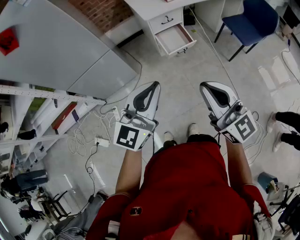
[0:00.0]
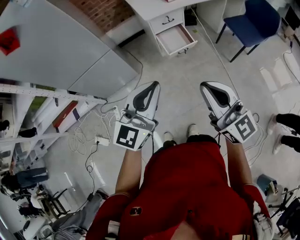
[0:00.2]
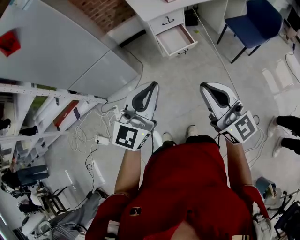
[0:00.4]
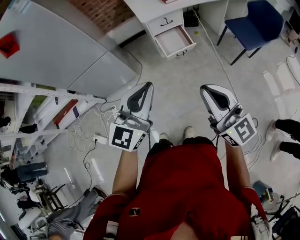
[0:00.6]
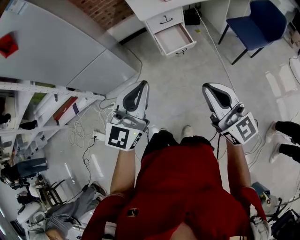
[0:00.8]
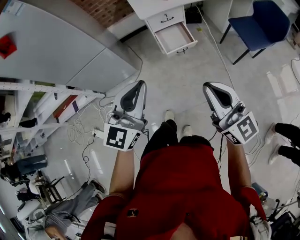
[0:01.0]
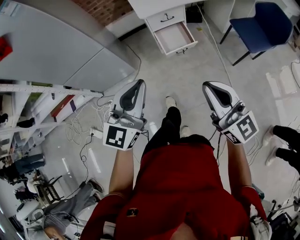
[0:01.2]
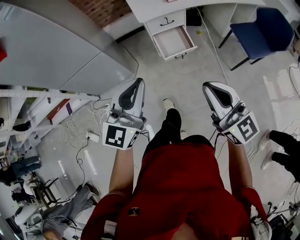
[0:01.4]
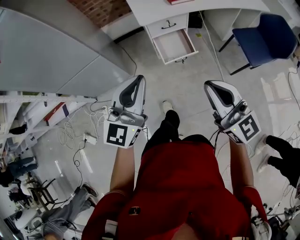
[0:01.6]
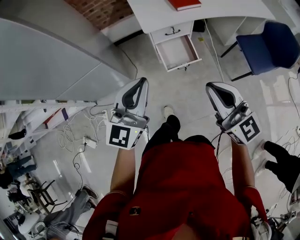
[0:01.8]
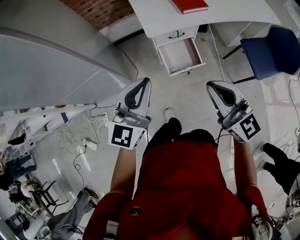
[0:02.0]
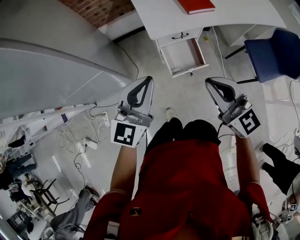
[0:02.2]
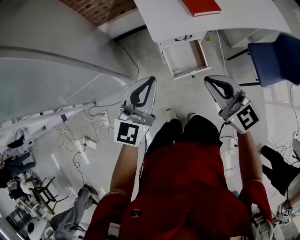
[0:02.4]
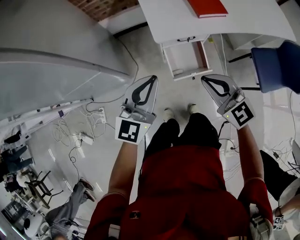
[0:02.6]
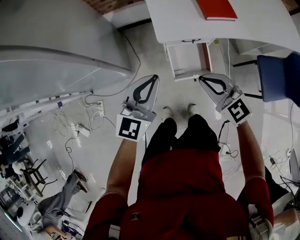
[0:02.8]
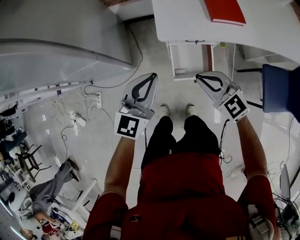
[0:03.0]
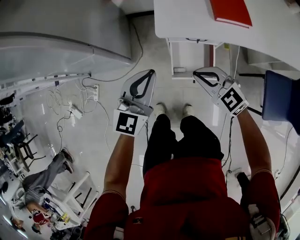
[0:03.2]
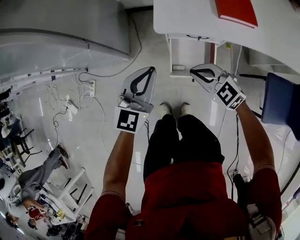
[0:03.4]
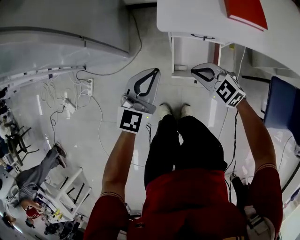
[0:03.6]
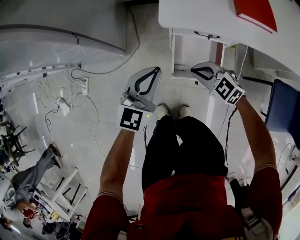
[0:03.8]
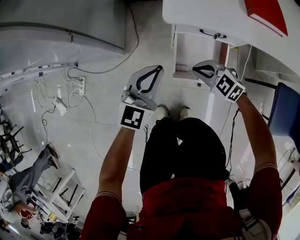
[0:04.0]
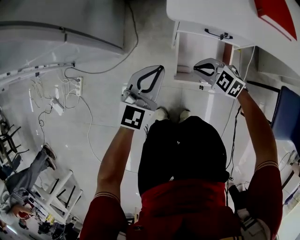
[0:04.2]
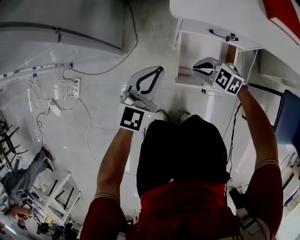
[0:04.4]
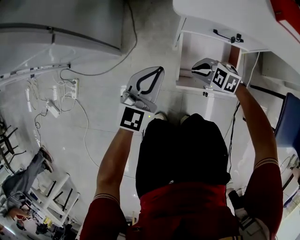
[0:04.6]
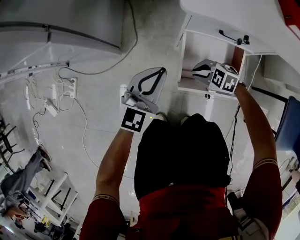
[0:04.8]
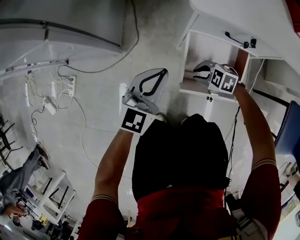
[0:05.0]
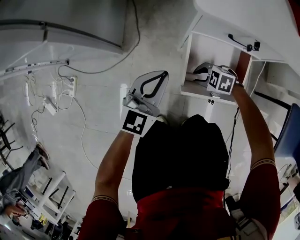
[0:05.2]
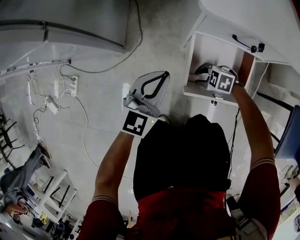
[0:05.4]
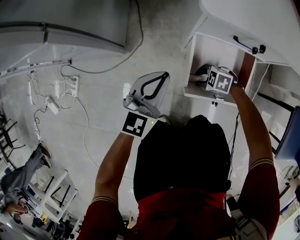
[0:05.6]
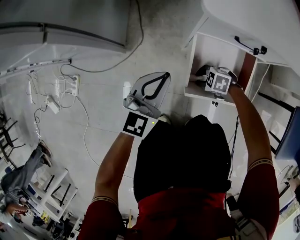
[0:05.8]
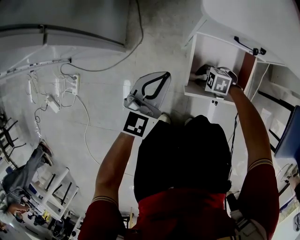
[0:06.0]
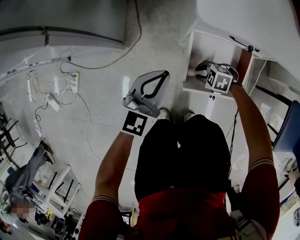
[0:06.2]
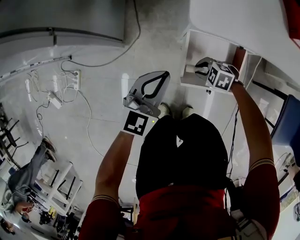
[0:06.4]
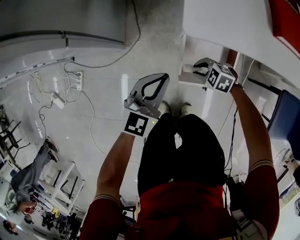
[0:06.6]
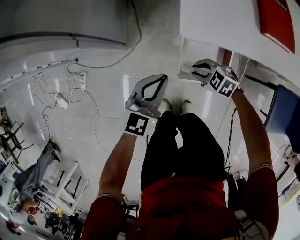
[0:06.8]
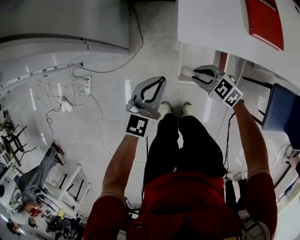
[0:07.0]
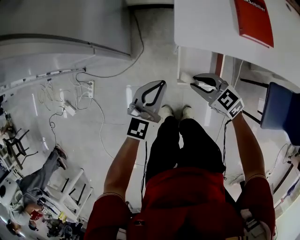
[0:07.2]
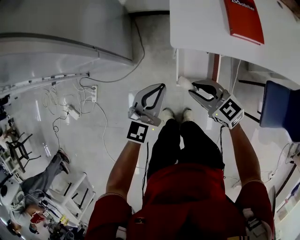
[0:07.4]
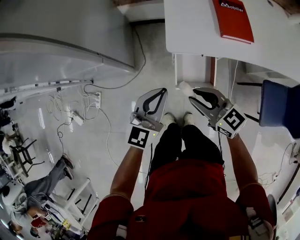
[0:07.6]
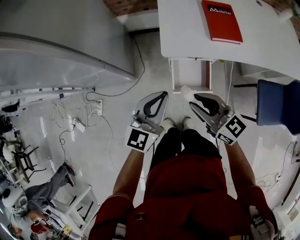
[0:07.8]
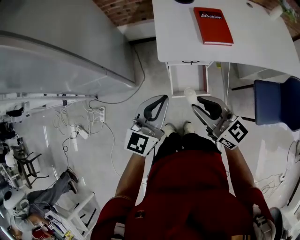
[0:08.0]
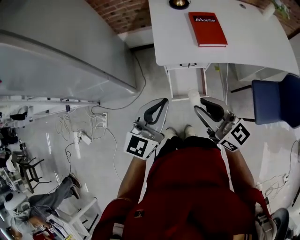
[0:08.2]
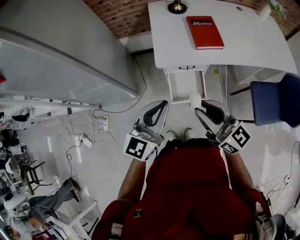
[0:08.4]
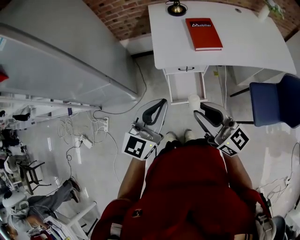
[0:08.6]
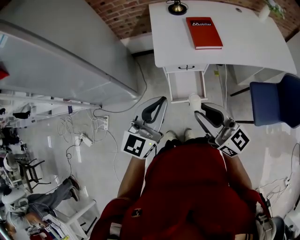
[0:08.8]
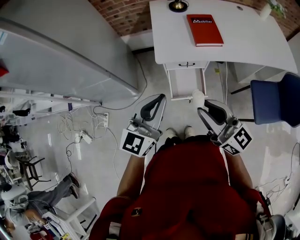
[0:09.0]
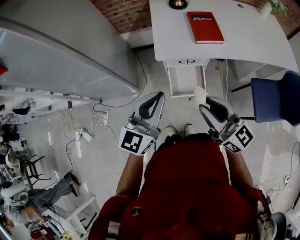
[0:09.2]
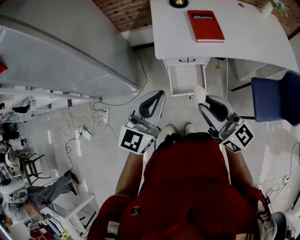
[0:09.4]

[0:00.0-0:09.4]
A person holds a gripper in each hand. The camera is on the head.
0:00.0 to 0:01.6: The right gripper shifts roughly 20 cm forward and to the right, while the left gripper travels forward by about 20 cm.
0:01.6 to 0:03.2: The right gripper ends up roughly 40 cm from where it was, and angles its fingers downward, by roughly 30 degrees; the left gripper shifts by about 35 cm, and changes its angle by roughly 20 degrees.
0:03.2 to 0:04.8: The two grippers go approximately 35 cm downward. The right gripper rotates approximately 40 degrees.
0:04.8 to 0:06.2: The right gripper is displaced downward by approximately 5 cm.
0:06.2 to 0:07.8: The right gripper moves upward, some 60 cm, and points its fingers about 50 degrees further upward; the left gripper is displaced upward by about 40 cm.
0:07.8 to 0:09.4: The right gripper goes approximately 15 cm upward, backward and to the right. Meanwhile the left gripper shifts roughly 15 cm upward and backward.

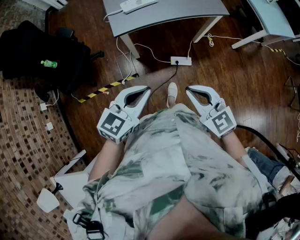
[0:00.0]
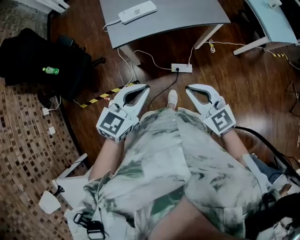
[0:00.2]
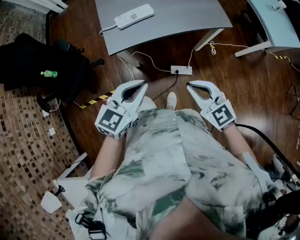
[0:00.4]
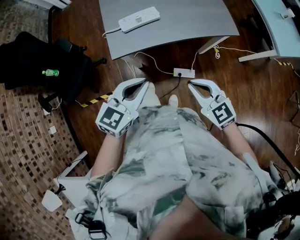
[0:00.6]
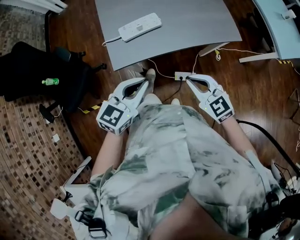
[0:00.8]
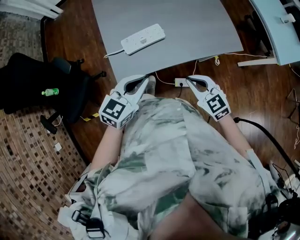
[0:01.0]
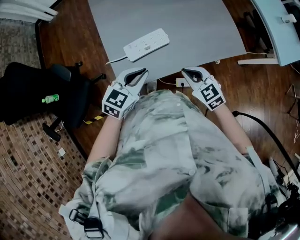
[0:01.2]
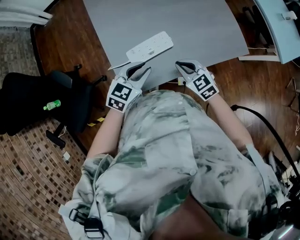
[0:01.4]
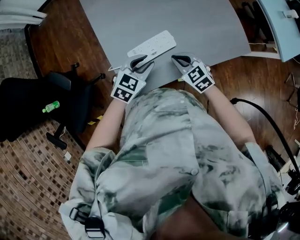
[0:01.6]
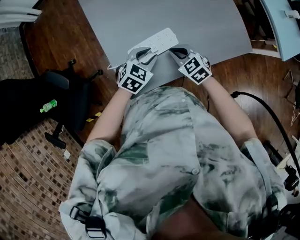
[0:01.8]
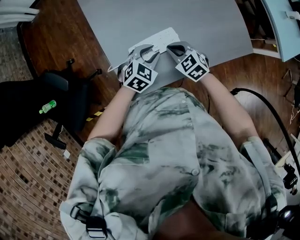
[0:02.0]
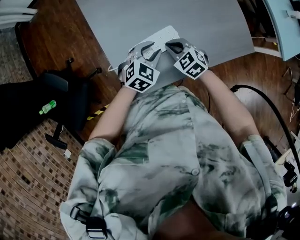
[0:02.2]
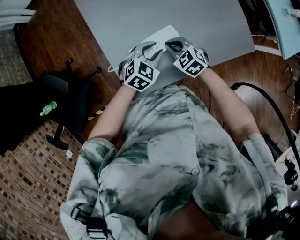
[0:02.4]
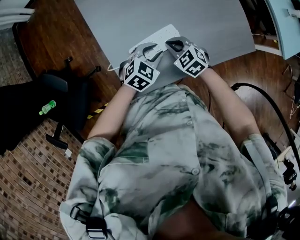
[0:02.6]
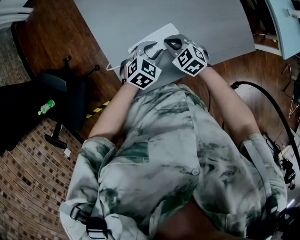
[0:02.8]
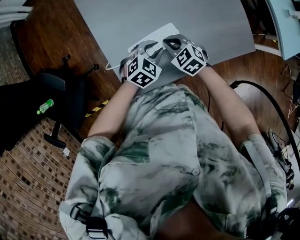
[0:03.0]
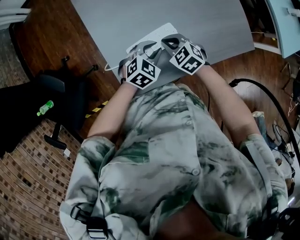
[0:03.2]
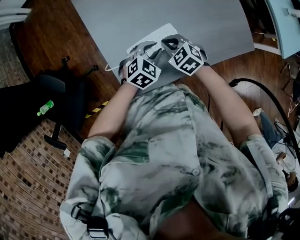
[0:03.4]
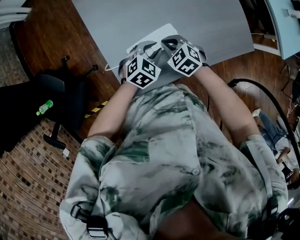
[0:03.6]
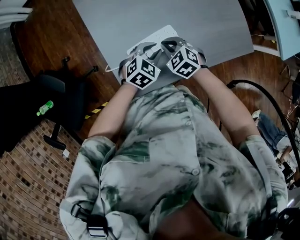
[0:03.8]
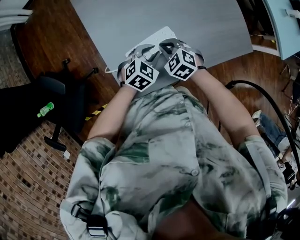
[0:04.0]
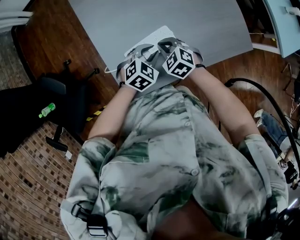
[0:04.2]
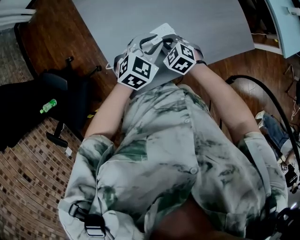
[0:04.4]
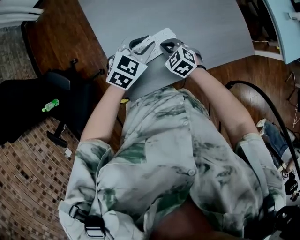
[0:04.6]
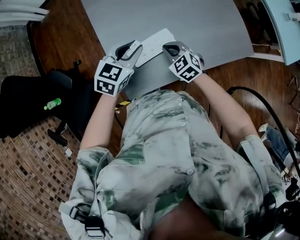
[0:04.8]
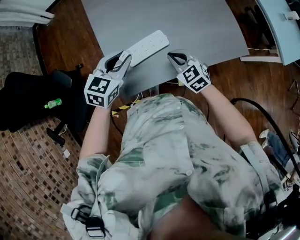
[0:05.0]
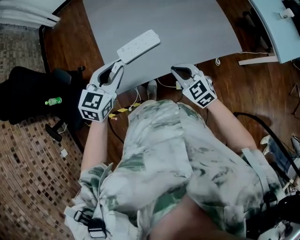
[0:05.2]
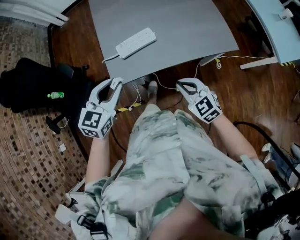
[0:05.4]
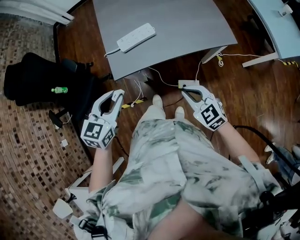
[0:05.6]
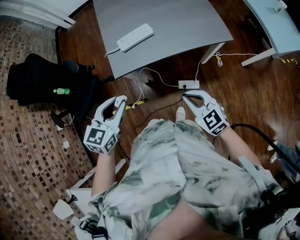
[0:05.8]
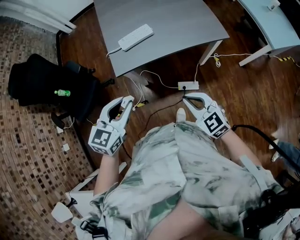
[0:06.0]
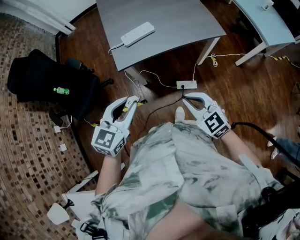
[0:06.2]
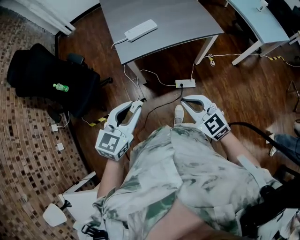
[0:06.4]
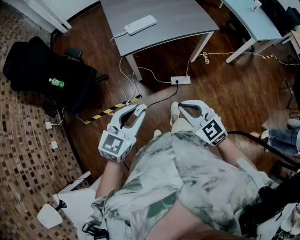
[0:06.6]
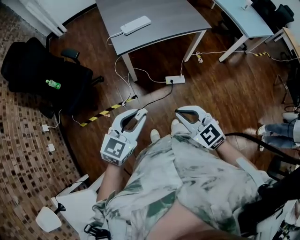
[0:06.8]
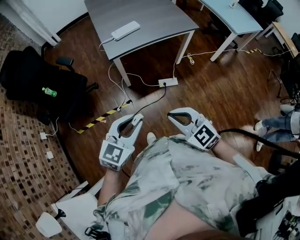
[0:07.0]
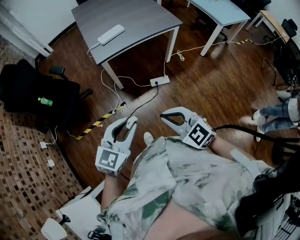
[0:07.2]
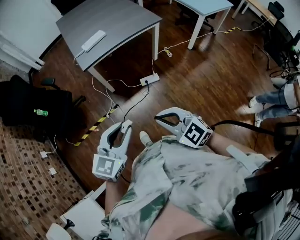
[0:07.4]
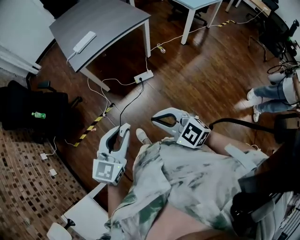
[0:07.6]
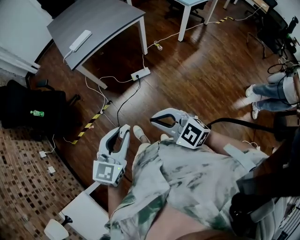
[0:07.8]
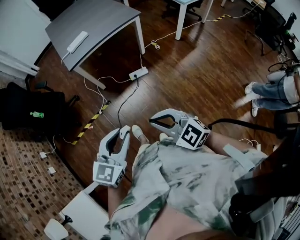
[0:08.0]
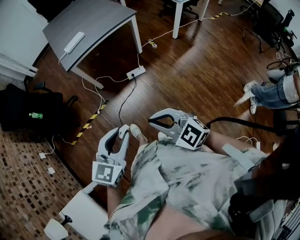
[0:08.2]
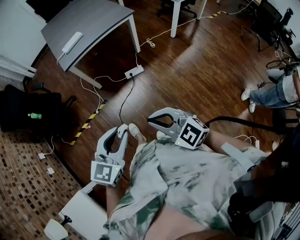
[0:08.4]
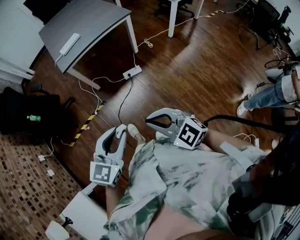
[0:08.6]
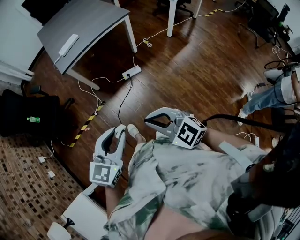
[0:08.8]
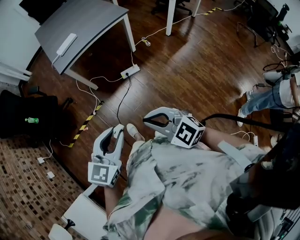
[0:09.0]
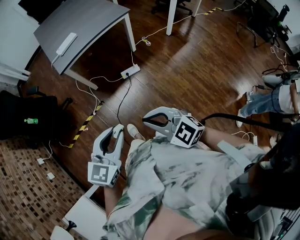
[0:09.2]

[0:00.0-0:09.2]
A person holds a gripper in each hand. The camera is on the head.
0:00.0 to 0:01.6: The two grippers travel together, forward, some 50 cm. The right gripper heads downward, covering about 20 cm, and turns by some 20 degrees; the left gripper opens up.
0:01.6 to 0:03.0: The right gripper moves forward and downward, roughly 10 cm, while the left gripper heads downward, covering some 5 cm.
0:03.0 to 0:04.6: The left gripper heads upward, covering some 10 cm.
0:04.6 to 0:06.2: The two grippers travel together, backward, roughly 40 cm. The right gripper travels upward by about 20 cm, and changes its angle by some 30 degrees. Meanwhile the left gripper turns by approximately 20 degrees.
0:06.2 to 0:07.6: The grippers both shift backward by approximately 35 cm.

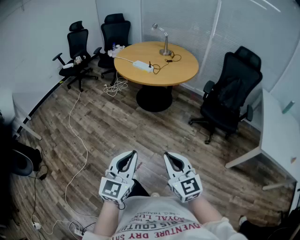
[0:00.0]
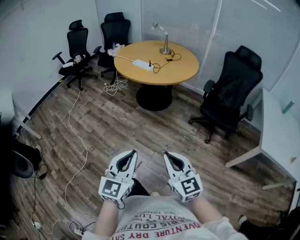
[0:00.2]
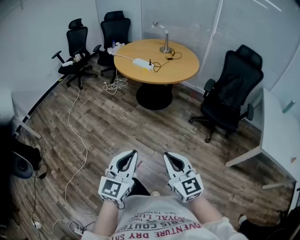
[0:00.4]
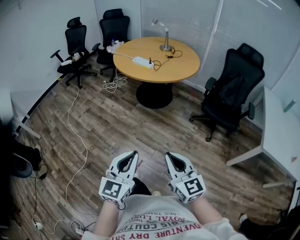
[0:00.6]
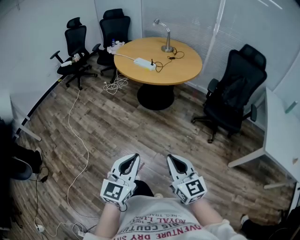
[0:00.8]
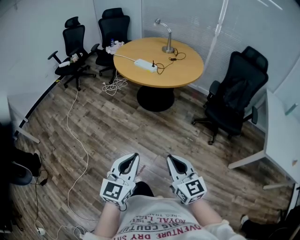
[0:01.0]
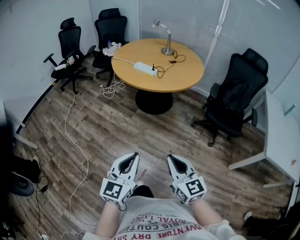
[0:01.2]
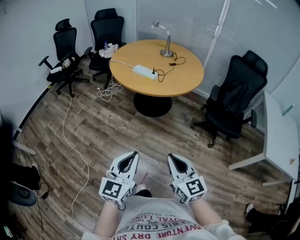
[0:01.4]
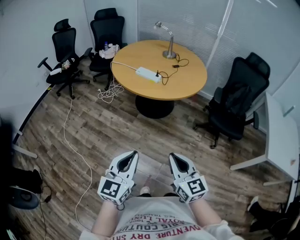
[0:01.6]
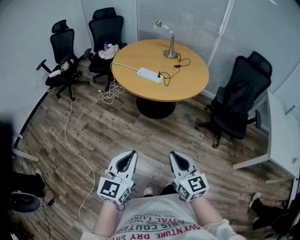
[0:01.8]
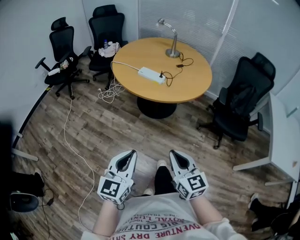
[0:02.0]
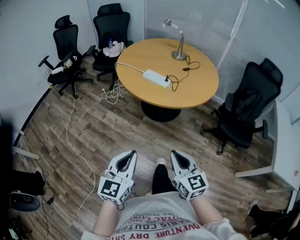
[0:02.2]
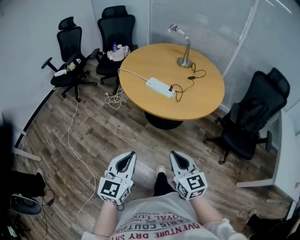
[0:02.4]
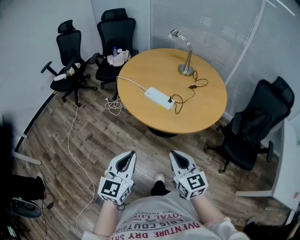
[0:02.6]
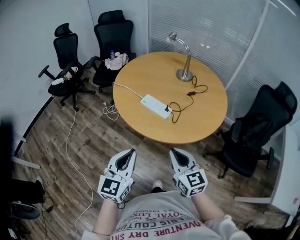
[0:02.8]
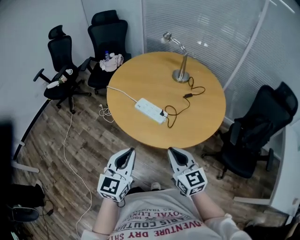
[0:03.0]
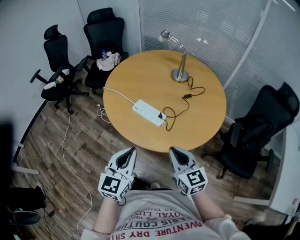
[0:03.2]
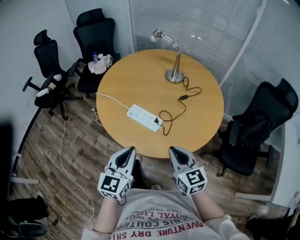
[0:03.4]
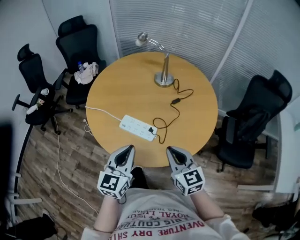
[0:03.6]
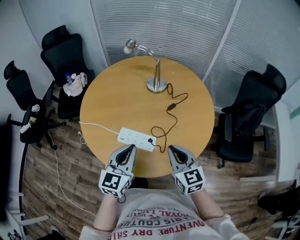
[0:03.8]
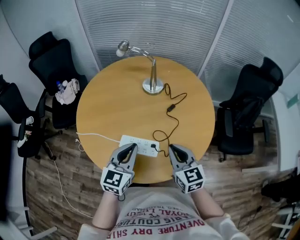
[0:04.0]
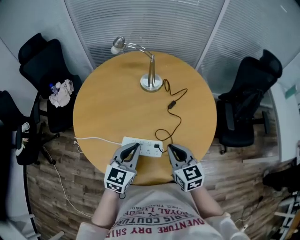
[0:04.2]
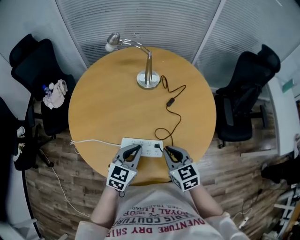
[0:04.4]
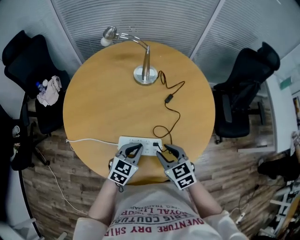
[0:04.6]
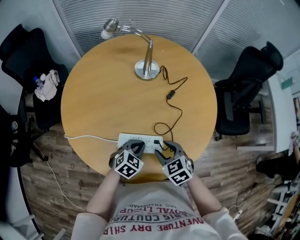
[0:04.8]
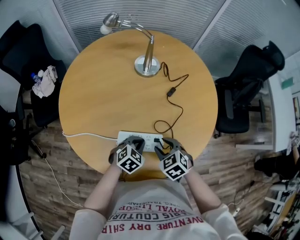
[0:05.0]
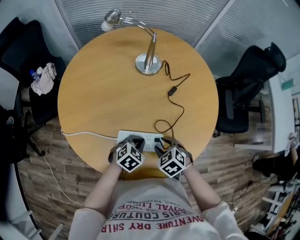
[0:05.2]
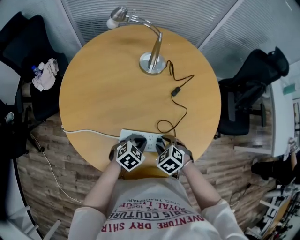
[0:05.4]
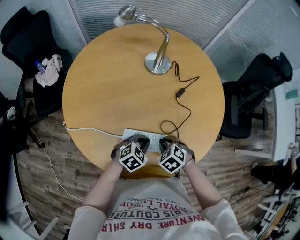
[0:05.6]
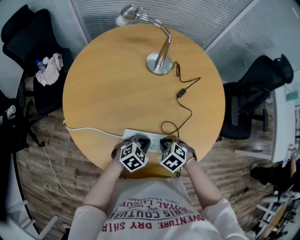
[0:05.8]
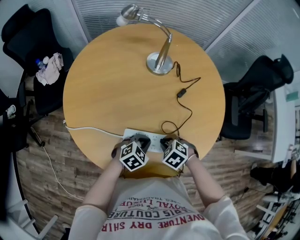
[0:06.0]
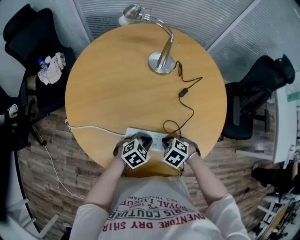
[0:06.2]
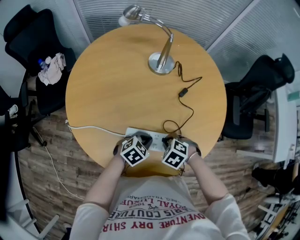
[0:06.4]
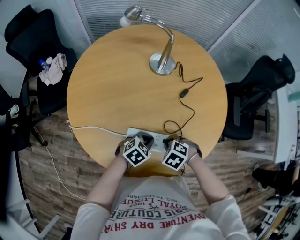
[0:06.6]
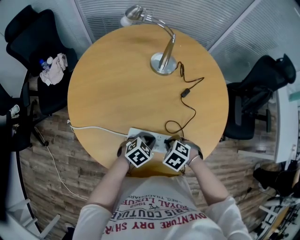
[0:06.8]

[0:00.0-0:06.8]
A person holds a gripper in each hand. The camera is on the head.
0:00.0 to 0:01.4: Both grippers move forward and to the left, some 20 cm.
0:01.4 to 0:02.8: The grippers both shift forward by approximately 40 cm.
0:02.8 to 0:04.0: The left gripper ends up approximately 35 cm from where it was, and rotates approximately 30 degrees; the right gripper changes place by approximately 25 cm, and turns by approximately 30 degrees.
0:04.0 to 0:05.4: The two grippers go approximately 20 cm downward. The right gripper points its fingers roughly 50 degrees further downward, and opens; the left gripper angles its fingers downward, by some 40 degrees.
0:05.4 to 0:06.8: The right gripper closes its fingers.
